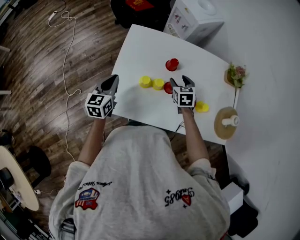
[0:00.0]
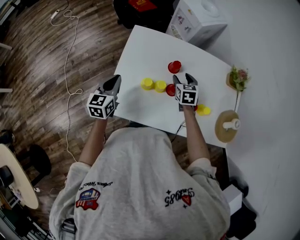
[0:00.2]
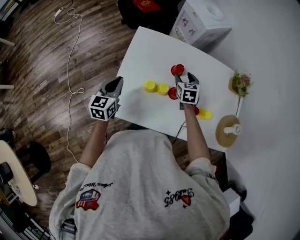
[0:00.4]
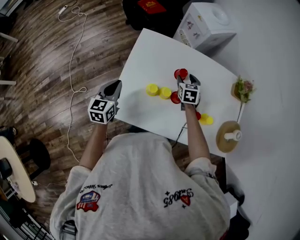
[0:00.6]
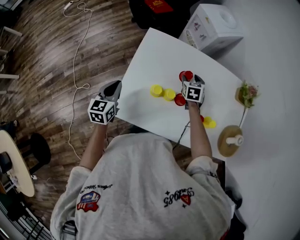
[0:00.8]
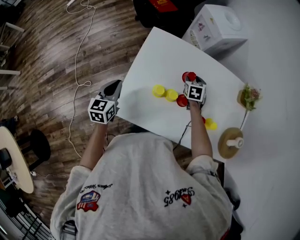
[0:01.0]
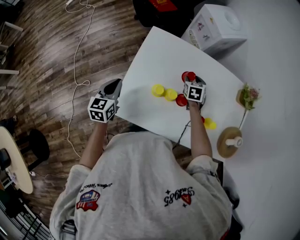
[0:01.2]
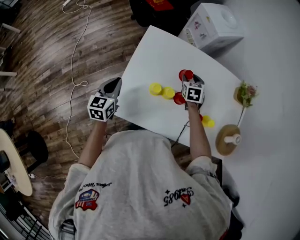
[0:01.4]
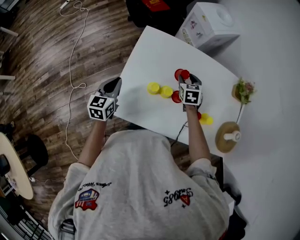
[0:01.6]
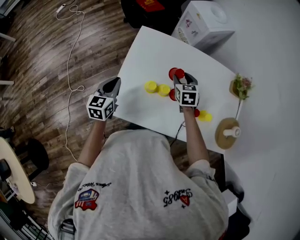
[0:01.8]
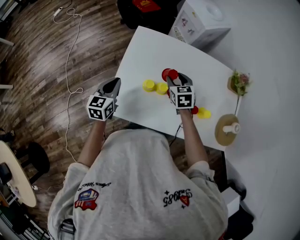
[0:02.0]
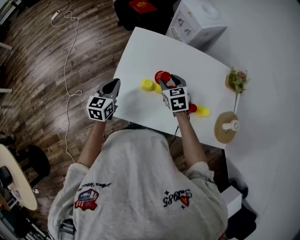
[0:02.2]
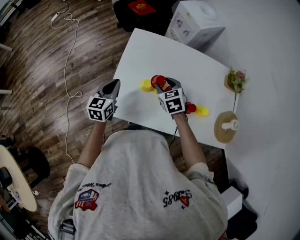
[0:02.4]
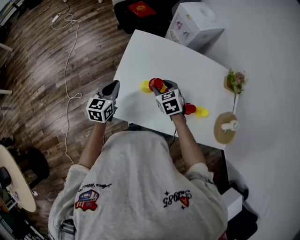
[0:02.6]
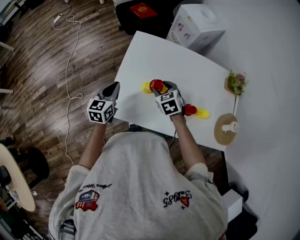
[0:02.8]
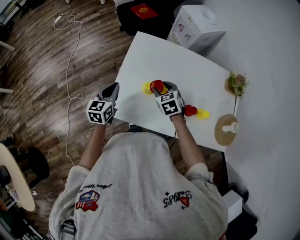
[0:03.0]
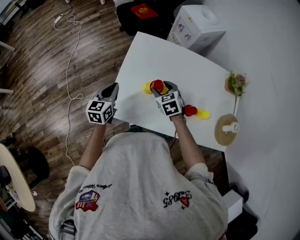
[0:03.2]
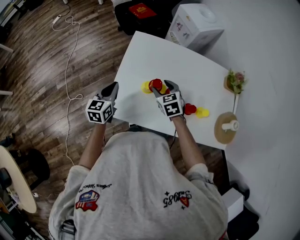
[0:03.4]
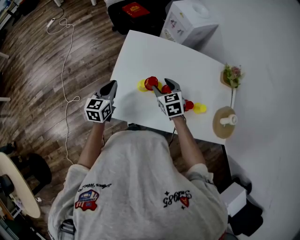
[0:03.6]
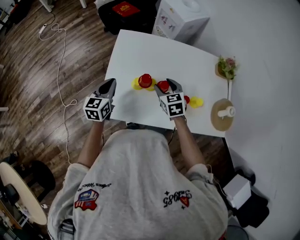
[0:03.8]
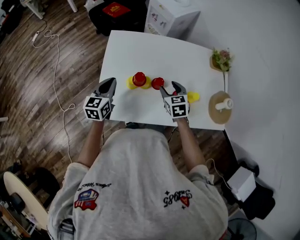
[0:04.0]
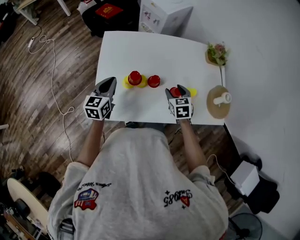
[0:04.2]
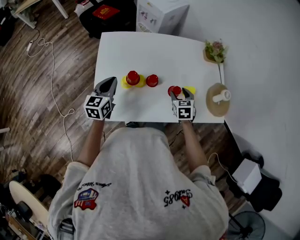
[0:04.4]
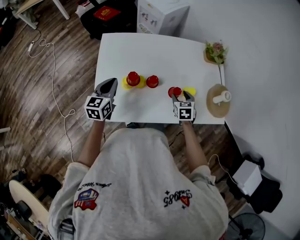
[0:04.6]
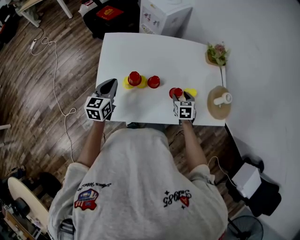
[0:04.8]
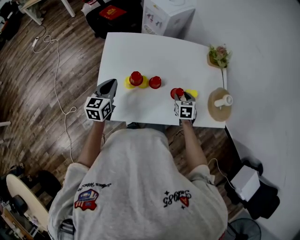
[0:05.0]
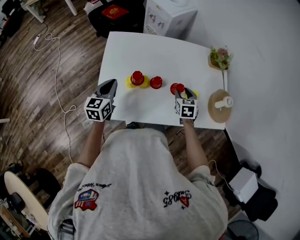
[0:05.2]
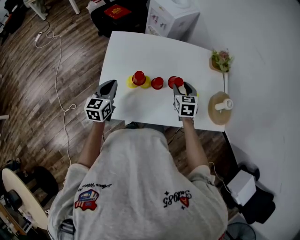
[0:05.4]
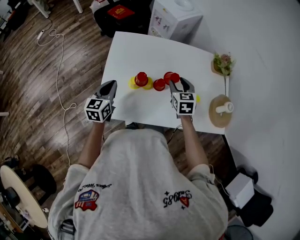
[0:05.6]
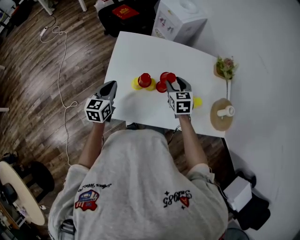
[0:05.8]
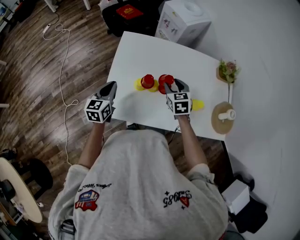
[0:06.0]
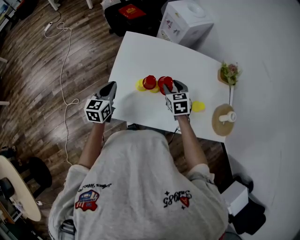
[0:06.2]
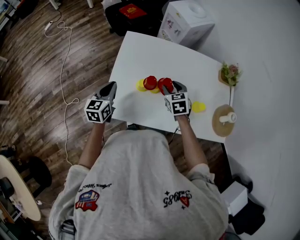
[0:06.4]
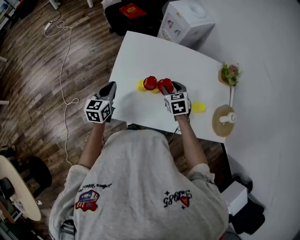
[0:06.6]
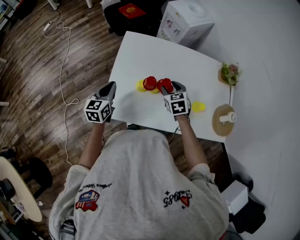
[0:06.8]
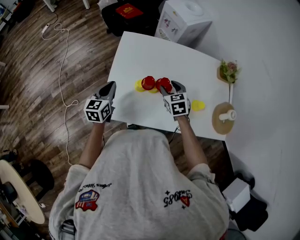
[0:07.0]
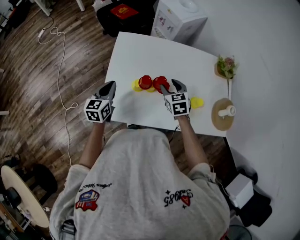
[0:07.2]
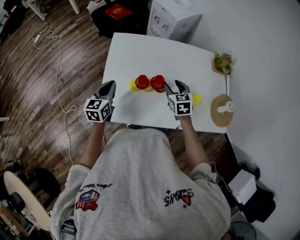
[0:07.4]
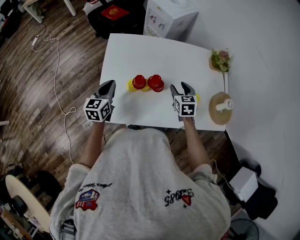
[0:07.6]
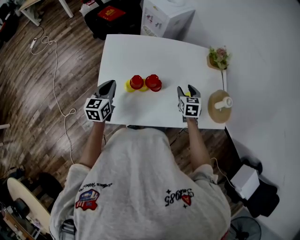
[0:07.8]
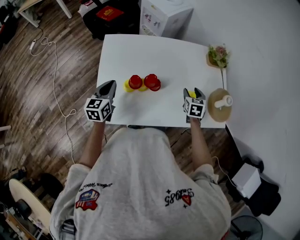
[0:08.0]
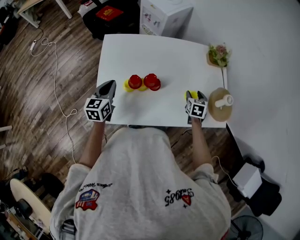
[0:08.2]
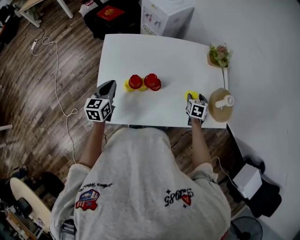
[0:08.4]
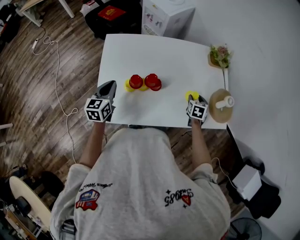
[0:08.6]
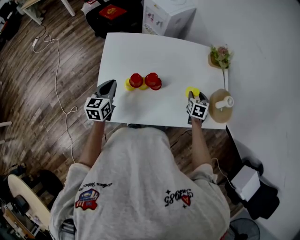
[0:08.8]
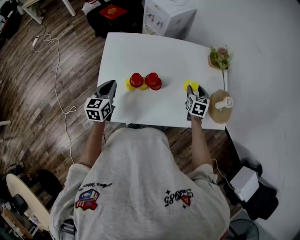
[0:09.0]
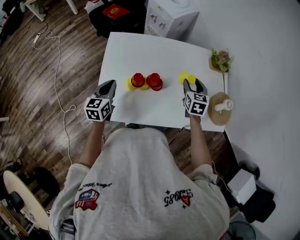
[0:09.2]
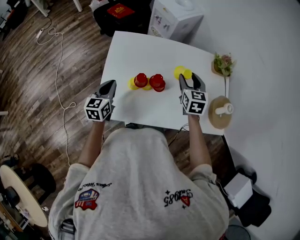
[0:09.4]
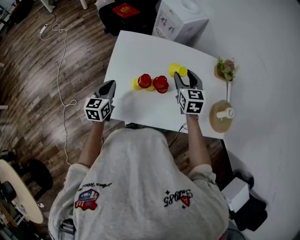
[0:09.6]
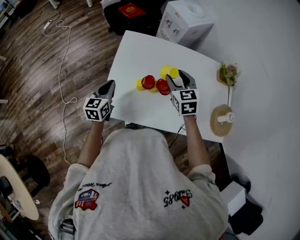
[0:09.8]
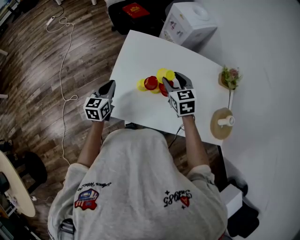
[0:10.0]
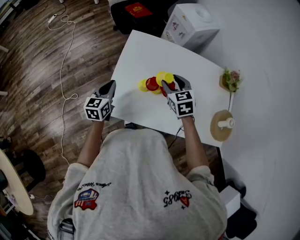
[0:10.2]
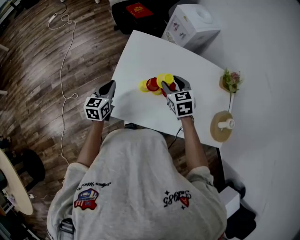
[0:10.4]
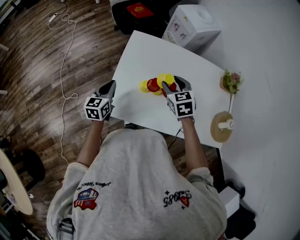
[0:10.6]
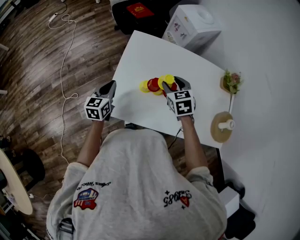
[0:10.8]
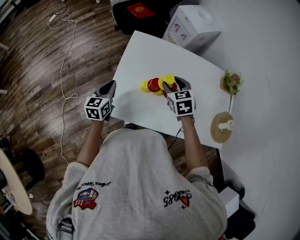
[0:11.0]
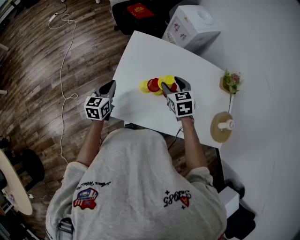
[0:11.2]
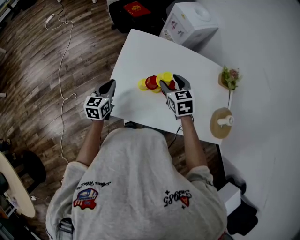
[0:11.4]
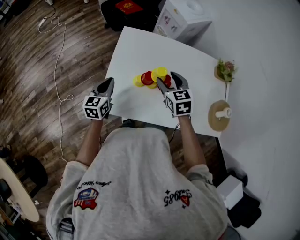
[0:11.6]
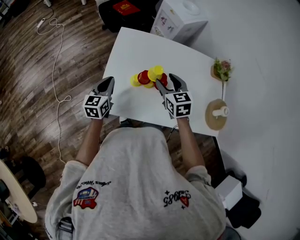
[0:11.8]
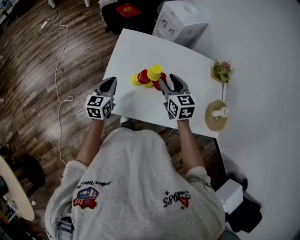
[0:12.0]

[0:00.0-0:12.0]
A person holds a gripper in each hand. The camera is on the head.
0:00.0 to 0:01.6: The right gripper heads forward, covering about 5 cm.
0:01.6 to 0:03.0: The right gripper shifts approximately 15 cm backward and to the left.
0:03.0 to 0:04.4: The right gripper ends up some 25 cm from where it was, and rotates about 30 degrees; the left gripper moves about 15 cm.
0:04.4 to 0:06.0: The left gripper is displaced to the left by some 10 cm. The right gripper shifts roughly 15 cm to the left and upward.
0:06.0 to 0:07.6: The right gripper travels to the right by roughly 10 cm; the left gripper shifts by some 5 cm.
0:07.6 to 0:09.0: The right gripper shifts about 15 cm to the right.
0:09.0 to 0:10.4: The left gripper moves approximately 10 cm, while the right gripper shifts by some 30 cm, and rotates approximately 40 degrees.
0:10.4 to 0:12.0: The right gripper shifts roughly 5 cm backward; the left gripper is displaced to the right by roughly 5 cm.

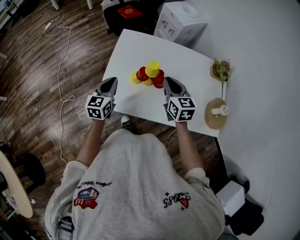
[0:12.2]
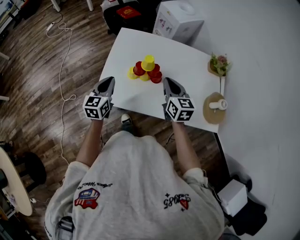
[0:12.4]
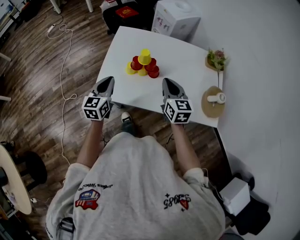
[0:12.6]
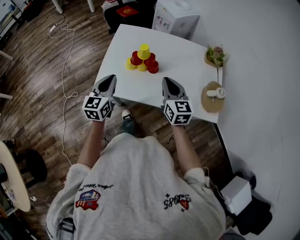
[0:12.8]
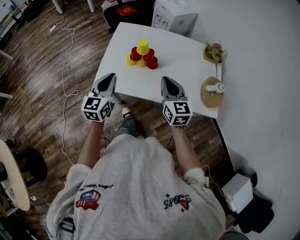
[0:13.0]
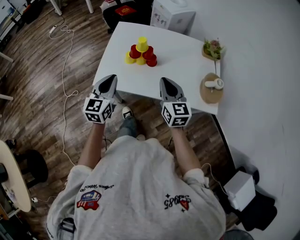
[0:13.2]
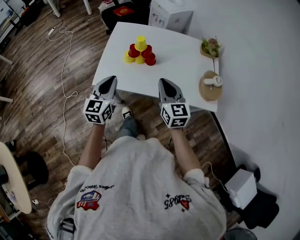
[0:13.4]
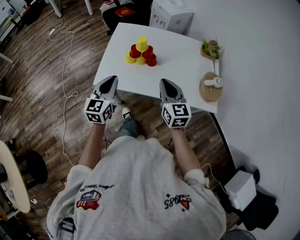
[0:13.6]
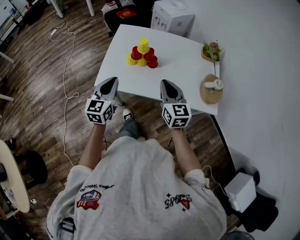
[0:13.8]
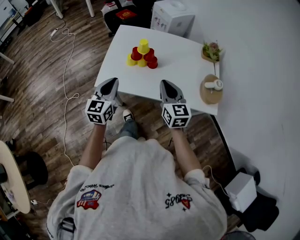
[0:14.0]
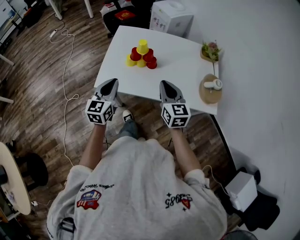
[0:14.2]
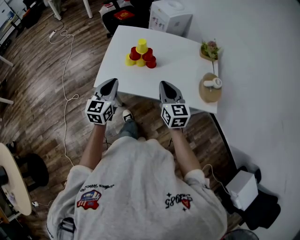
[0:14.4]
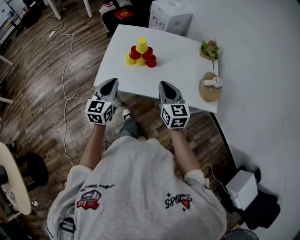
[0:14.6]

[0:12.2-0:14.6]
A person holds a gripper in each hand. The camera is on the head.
0:12.2 to 0:13.4: The grippers both shift backward by some 20 cm.
0:13.4 to 0:14.6: The two grippers keep their place.

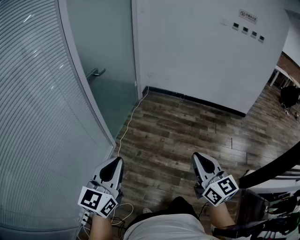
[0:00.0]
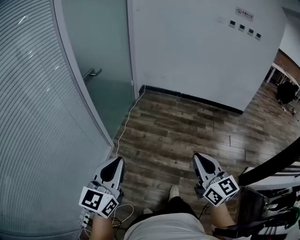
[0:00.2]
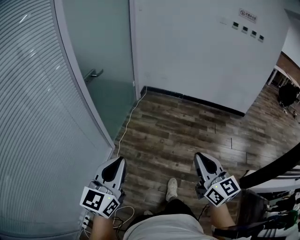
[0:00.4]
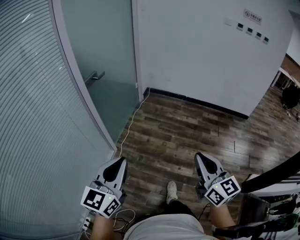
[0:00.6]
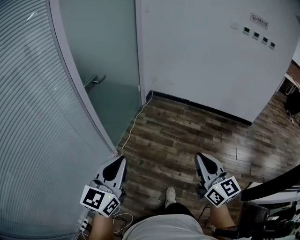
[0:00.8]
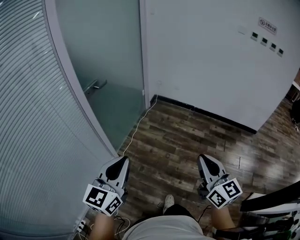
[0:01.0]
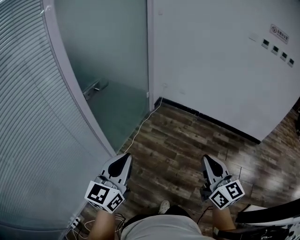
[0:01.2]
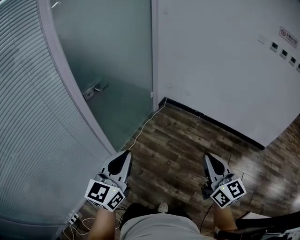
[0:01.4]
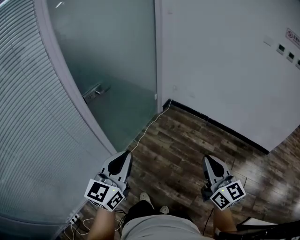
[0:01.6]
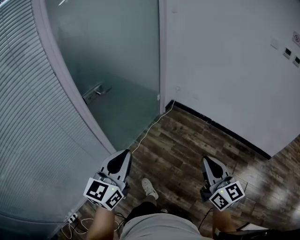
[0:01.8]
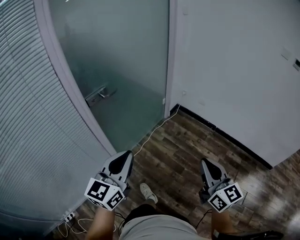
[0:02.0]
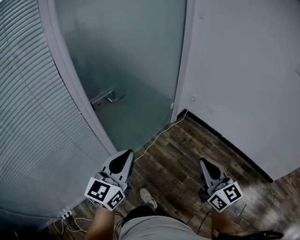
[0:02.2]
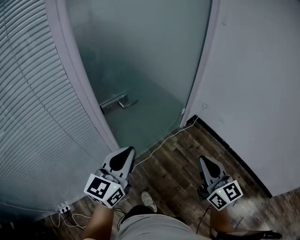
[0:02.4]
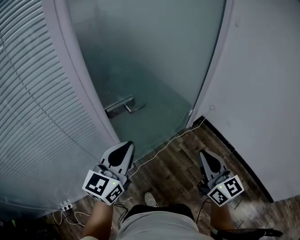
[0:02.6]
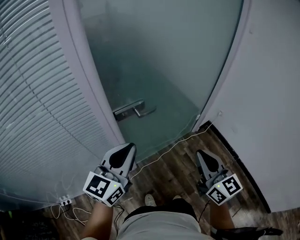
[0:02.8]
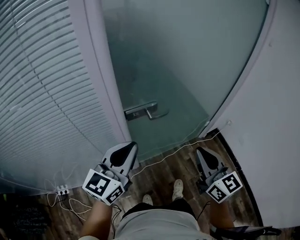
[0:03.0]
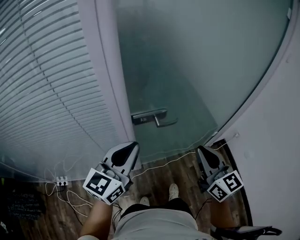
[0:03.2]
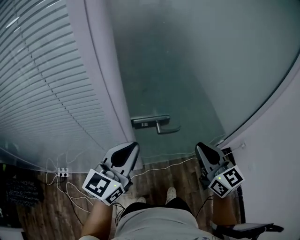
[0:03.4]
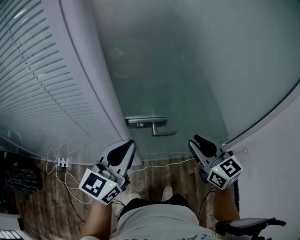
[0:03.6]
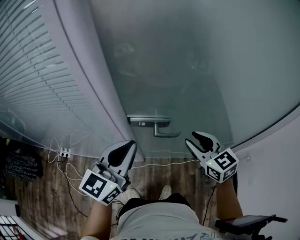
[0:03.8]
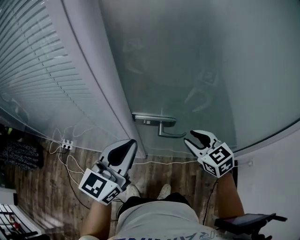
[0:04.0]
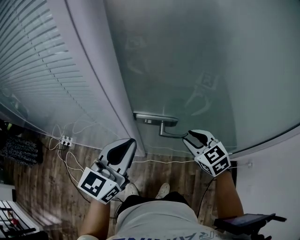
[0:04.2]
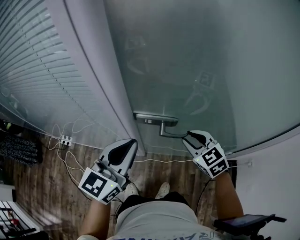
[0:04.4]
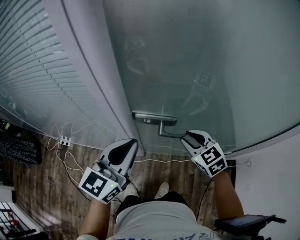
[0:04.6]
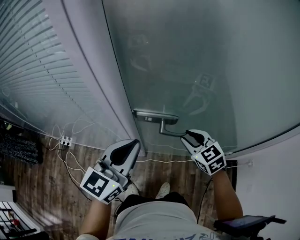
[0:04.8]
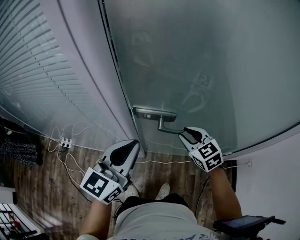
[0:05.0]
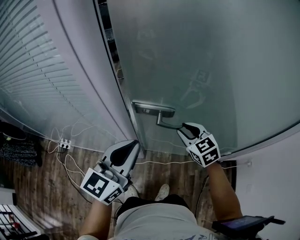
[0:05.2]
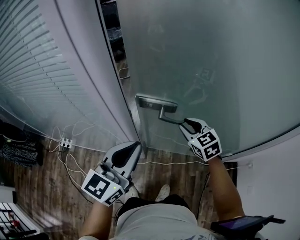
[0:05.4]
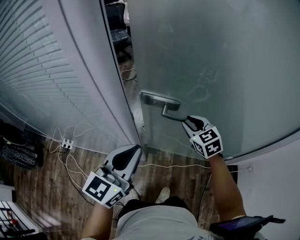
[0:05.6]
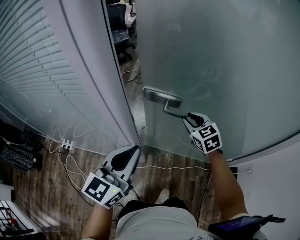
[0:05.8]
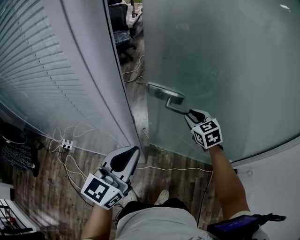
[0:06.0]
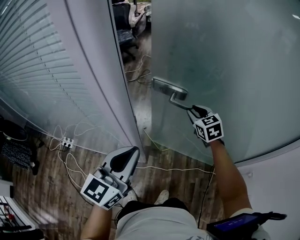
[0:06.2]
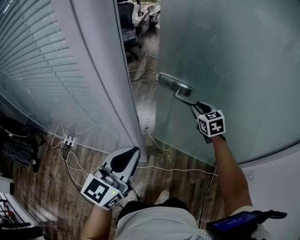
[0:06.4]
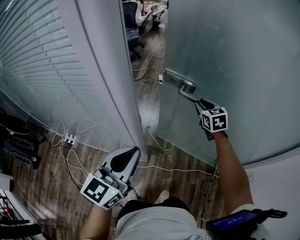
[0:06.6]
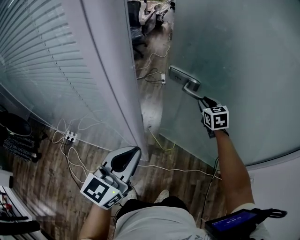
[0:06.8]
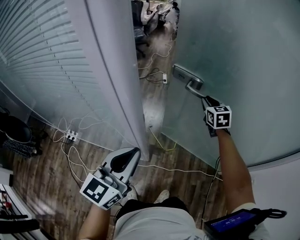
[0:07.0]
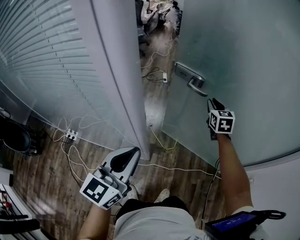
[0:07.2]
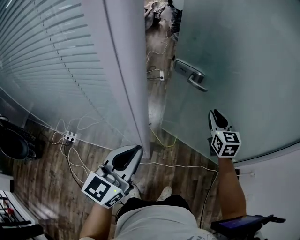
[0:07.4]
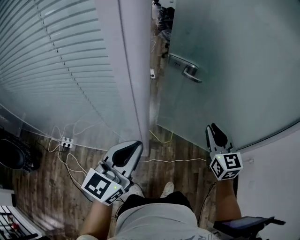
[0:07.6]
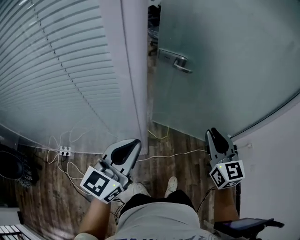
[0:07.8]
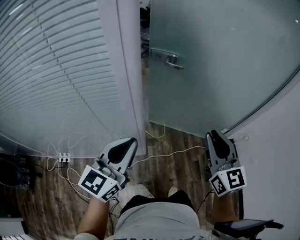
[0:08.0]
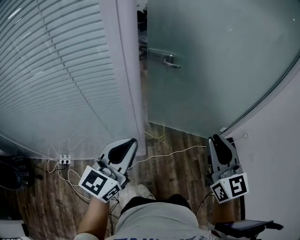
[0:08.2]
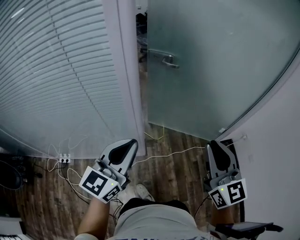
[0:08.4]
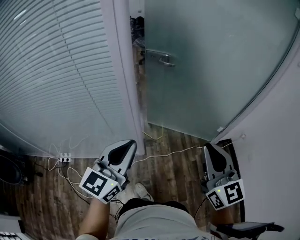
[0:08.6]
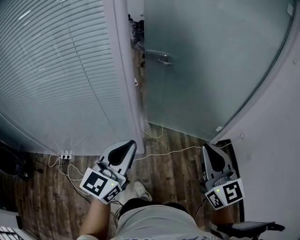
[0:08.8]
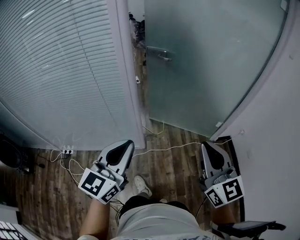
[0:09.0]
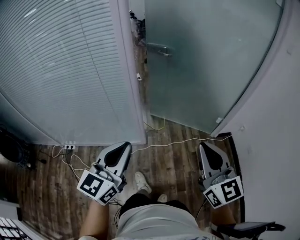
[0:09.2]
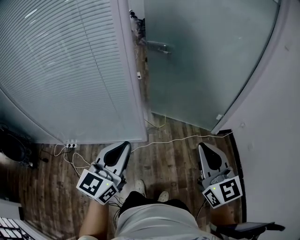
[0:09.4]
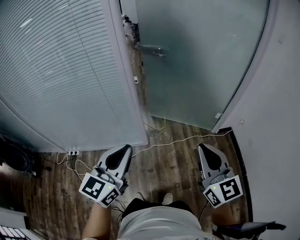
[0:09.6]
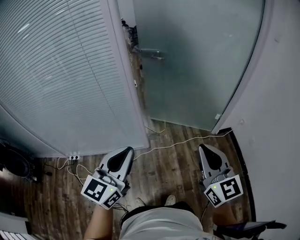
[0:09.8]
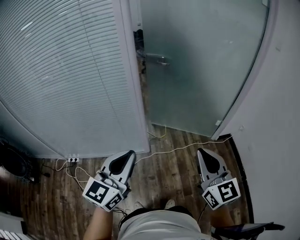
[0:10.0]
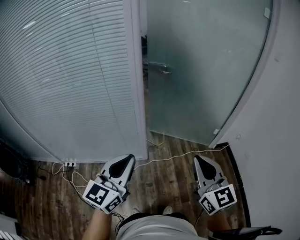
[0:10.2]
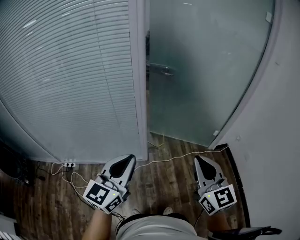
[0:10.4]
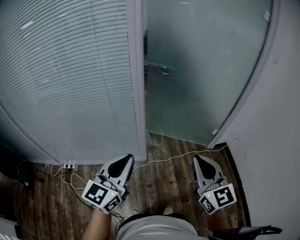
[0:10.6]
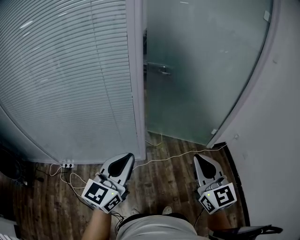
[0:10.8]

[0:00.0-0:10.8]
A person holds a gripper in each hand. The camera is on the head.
0:00.0 to 0:01.6: Both grippers travel together forward, roughly 35 cm.
0:01.6 to 0:03.0: The left gripper shifts by roughly 35 cm, and turns by roughly 20 degrees; the right gripper changes place by about 50 cm, and rotates about 40 degrees.
0:03.0 to 0:04.6: The right gripper ends up about 30 cm from where it was, tips its fingers downward by approximately 30 degrees, and opens its fingers. Meanwhile the left gripper moves roughly 10 cm, and turns by about 30 degrees.
0:04.6 to 0:06.2: The right gripper moves forward, roughly 15 cm.
0:06.2 to 0:07.8: The right gripper shifts about 25 cm backward, and rotates approximately 30 degrees. Meanwhile the left gripper heads backward and to the left, covering some 10 cm.
0:07.8 to 0:09.2: The grippers both shift backward by about 30 cm.
0:09.2 to 0:10.8: Both grippers travel together to the left, about 5 cm.
